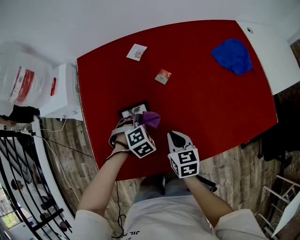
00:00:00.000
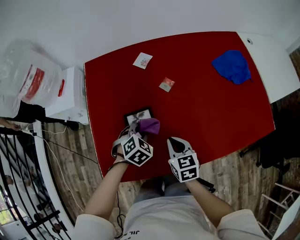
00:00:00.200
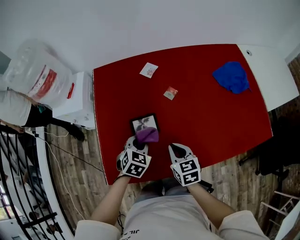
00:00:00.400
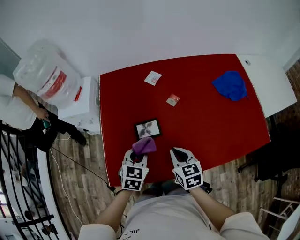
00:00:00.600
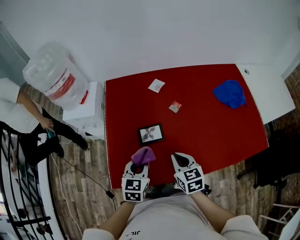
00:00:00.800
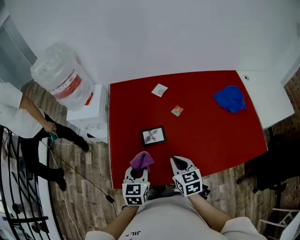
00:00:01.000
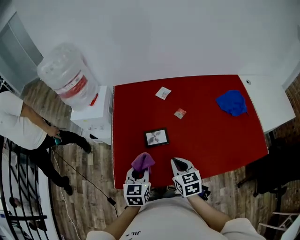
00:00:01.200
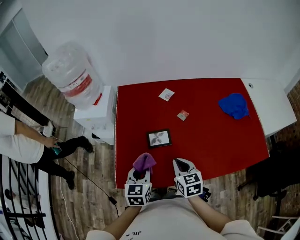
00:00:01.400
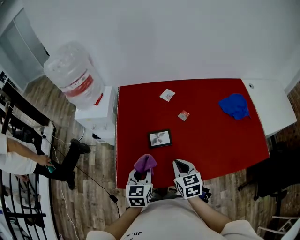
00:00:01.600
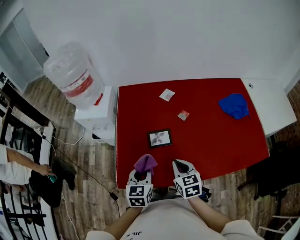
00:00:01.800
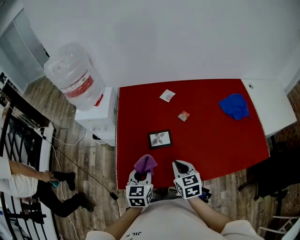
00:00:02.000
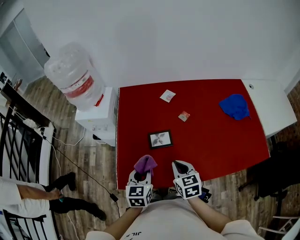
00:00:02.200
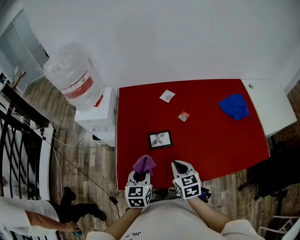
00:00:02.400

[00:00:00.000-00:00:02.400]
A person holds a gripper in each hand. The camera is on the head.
00:00:00.000 to 00:00:01.200: The left gripper goes about 25 cm upward, backward and to the left, and rotates around the line of its fingers by approximately 60 degrees, counterclockwise from behind; the right gripper goes roughly 15 cm upward, to the left and backward.
00:00:01.200 to 00:00:02.400: There are only small adjustments of the grippers.

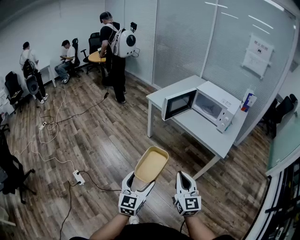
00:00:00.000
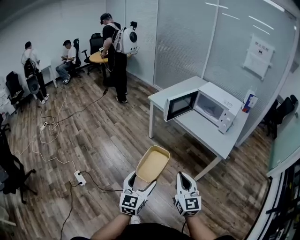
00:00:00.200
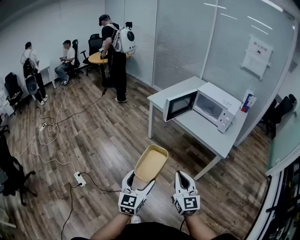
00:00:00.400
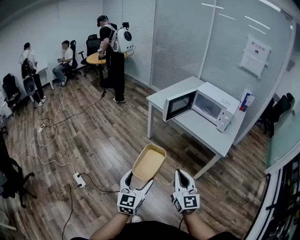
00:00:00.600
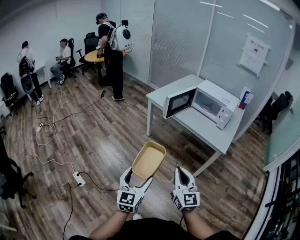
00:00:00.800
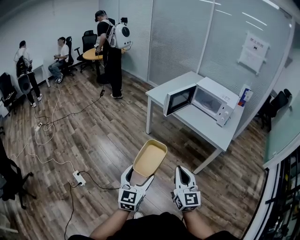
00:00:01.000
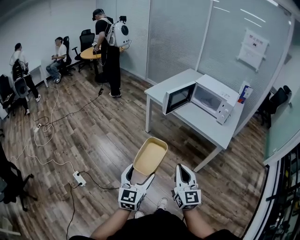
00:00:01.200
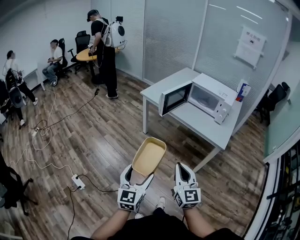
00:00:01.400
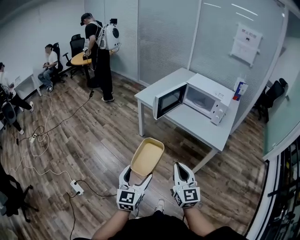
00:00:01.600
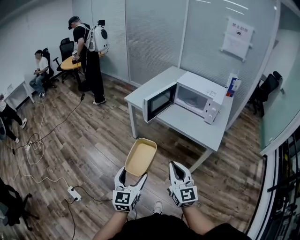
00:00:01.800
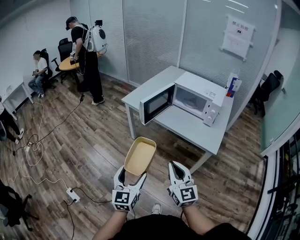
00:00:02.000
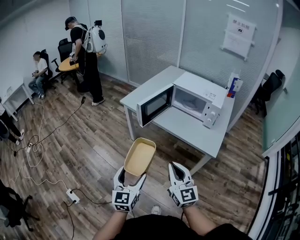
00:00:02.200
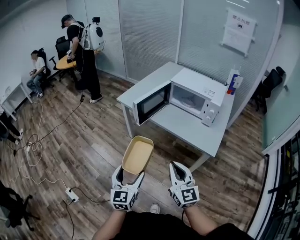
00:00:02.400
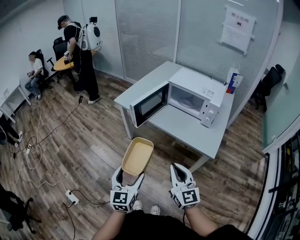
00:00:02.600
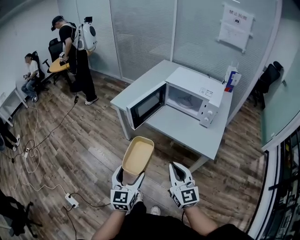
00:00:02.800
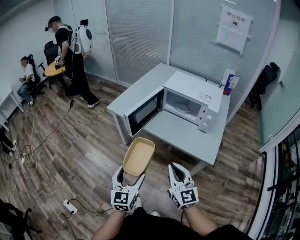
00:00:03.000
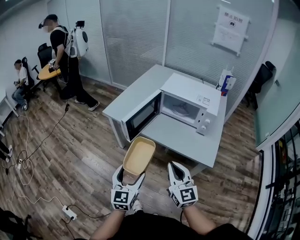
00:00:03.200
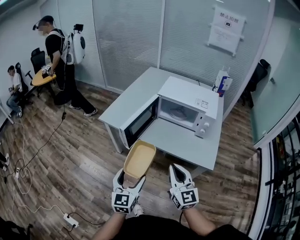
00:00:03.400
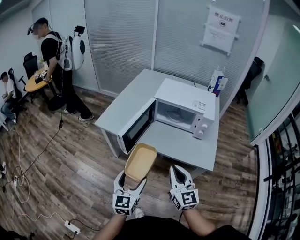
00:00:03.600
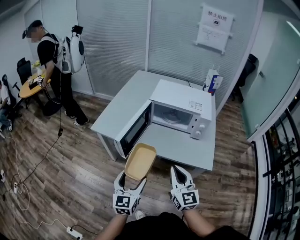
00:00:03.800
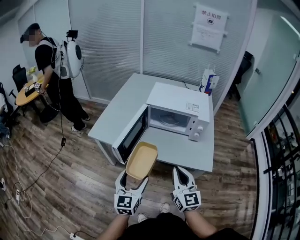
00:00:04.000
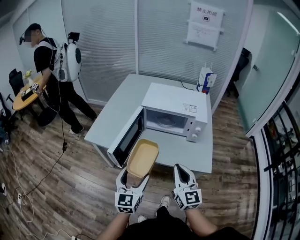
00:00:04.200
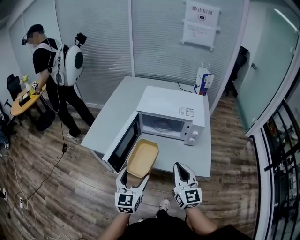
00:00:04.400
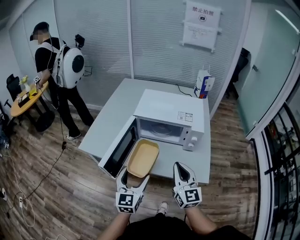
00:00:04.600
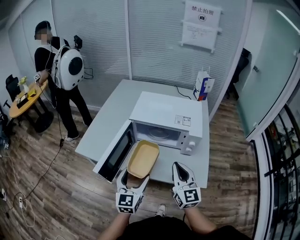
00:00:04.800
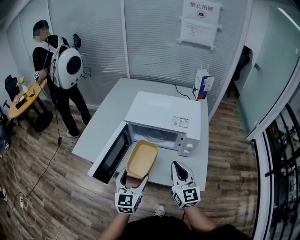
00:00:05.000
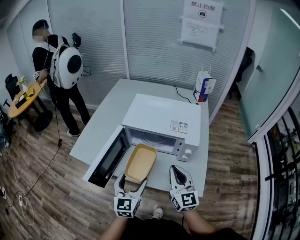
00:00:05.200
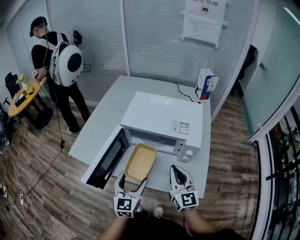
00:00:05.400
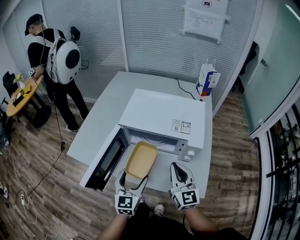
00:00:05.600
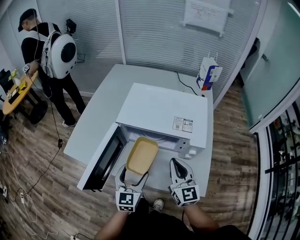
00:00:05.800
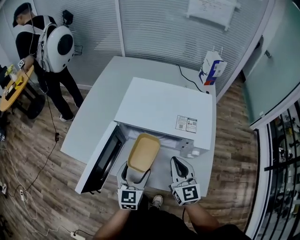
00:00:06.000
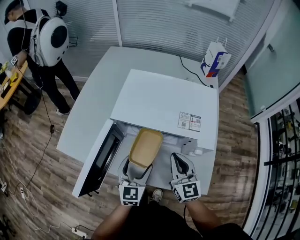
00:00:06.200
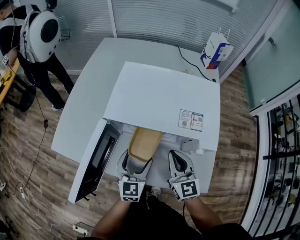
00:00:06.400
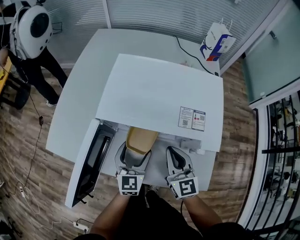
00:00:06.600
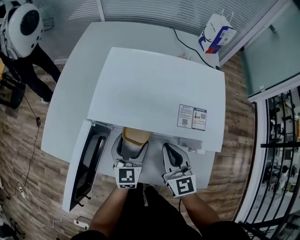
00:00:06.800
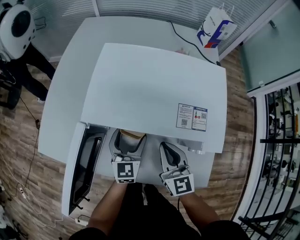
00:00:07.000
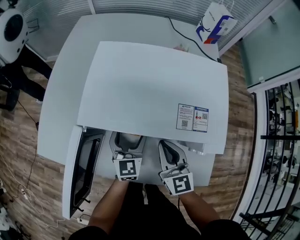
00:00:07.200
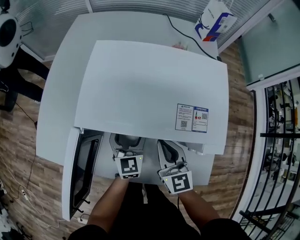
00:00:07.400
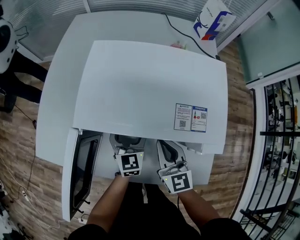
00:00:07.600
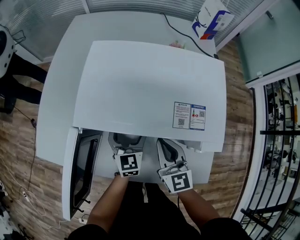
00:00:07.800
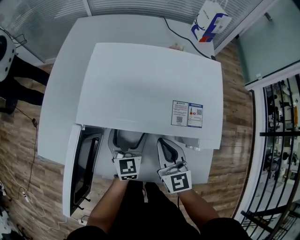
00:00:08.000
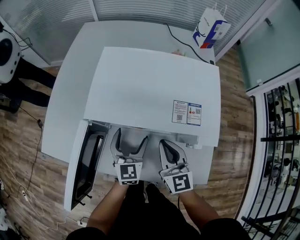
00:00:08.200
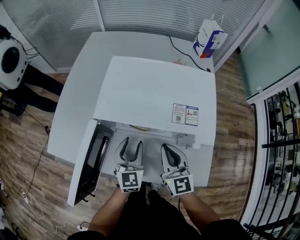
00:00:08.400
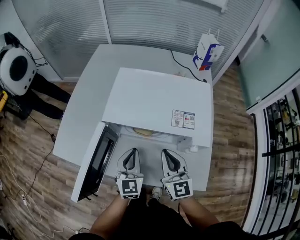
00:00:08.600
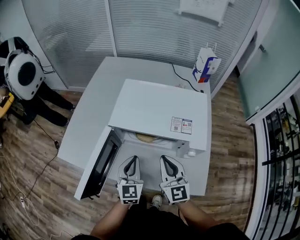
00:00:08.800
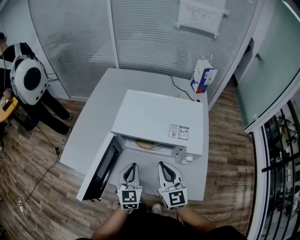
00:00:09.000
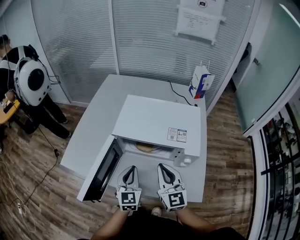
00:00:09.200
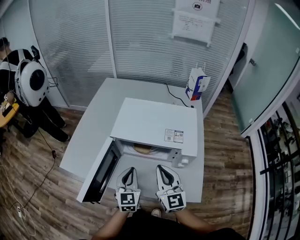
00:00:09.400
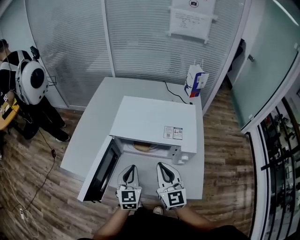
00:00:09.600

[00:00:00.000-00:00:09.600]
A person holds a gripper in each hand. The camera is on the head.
00:00:00.000 to 00:00:01.600: Both grippers travel together forward, about 5 cm.
00:00:01.600 to 00:00:03.200: The right gripper travels forward and to the right by about 25 cm. Meanwhile the left gripper heads forward, covering approximately 25 cm.
00:00:03.200 to 00:00:04.800: The left gripper heads forward, covering some 25 cm. The right gripper travels forward and to the right by roughly 20 cm.
00:00:04.800 to 00:00:06.400: The two grippers go about 20 cm forward and downward.
00:00:06.400 to 00:00:08.000: The left gripper moves forward and downward, roughly 10 cm. Meanwhile the right gripper moves about 5 cm.
00:00:08.000 to 00:00:09.600: The two grippers go some 15 cm upward and backward. The left gripper closes.

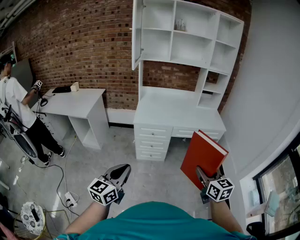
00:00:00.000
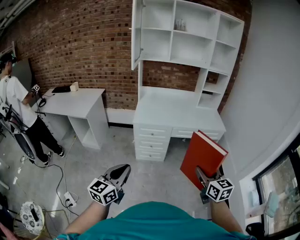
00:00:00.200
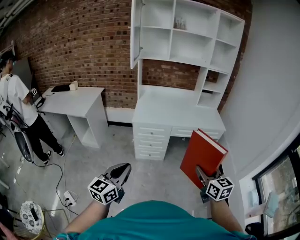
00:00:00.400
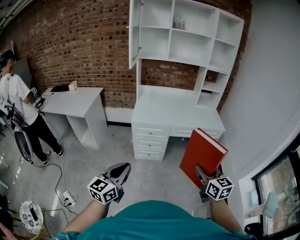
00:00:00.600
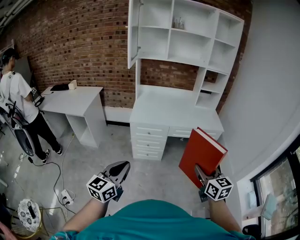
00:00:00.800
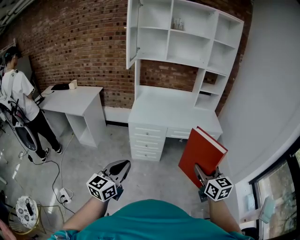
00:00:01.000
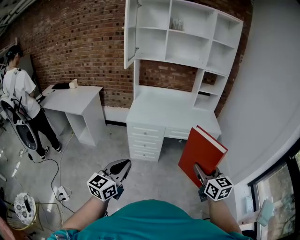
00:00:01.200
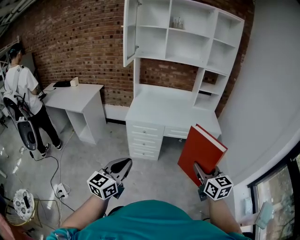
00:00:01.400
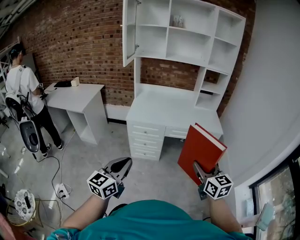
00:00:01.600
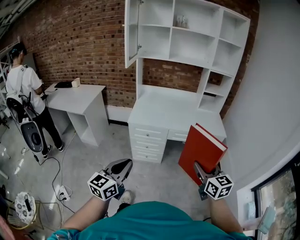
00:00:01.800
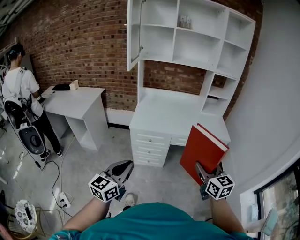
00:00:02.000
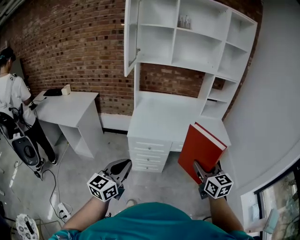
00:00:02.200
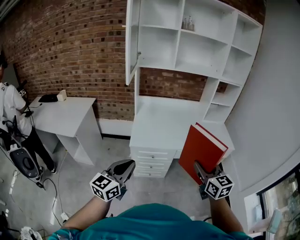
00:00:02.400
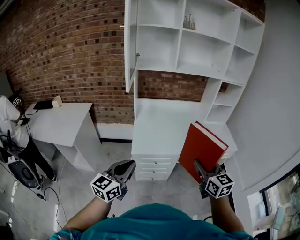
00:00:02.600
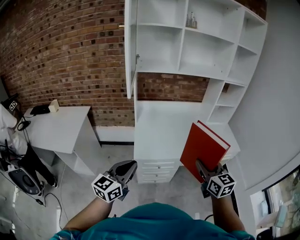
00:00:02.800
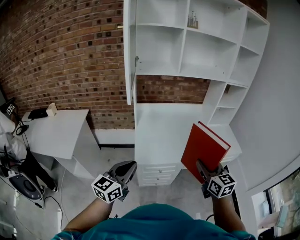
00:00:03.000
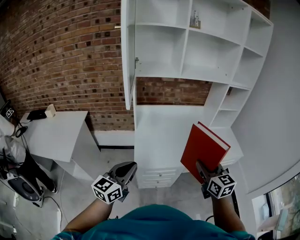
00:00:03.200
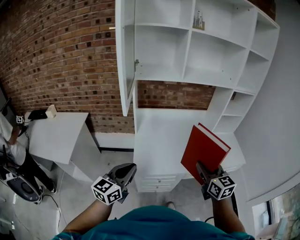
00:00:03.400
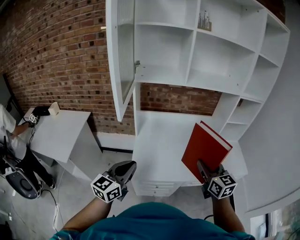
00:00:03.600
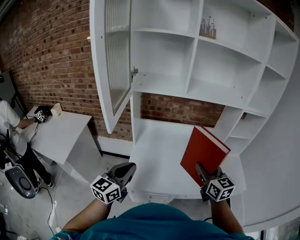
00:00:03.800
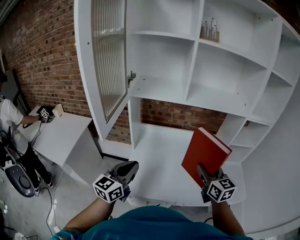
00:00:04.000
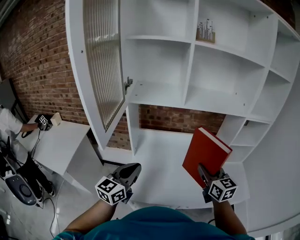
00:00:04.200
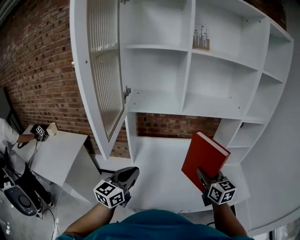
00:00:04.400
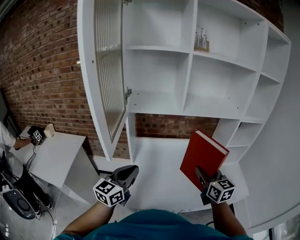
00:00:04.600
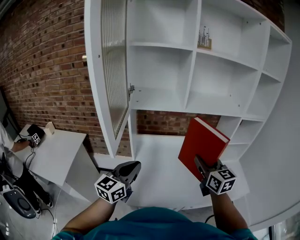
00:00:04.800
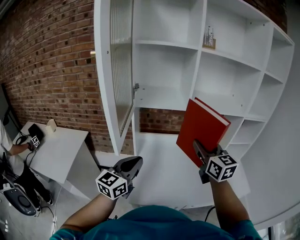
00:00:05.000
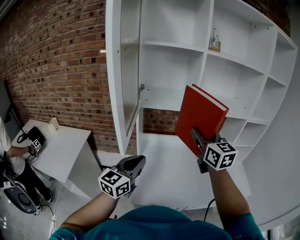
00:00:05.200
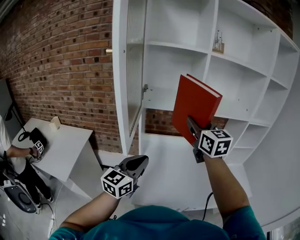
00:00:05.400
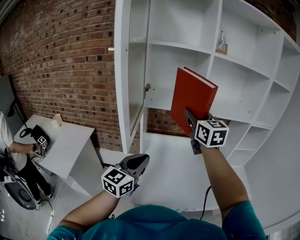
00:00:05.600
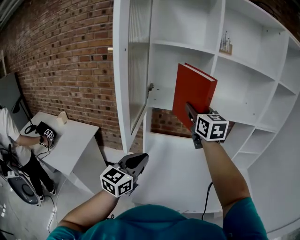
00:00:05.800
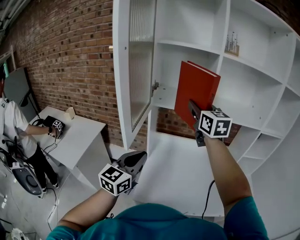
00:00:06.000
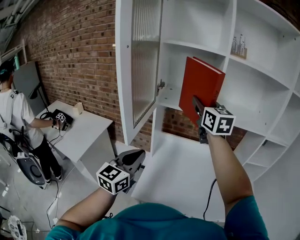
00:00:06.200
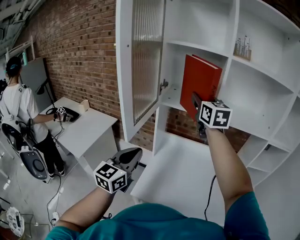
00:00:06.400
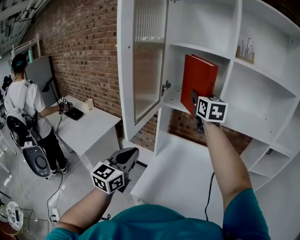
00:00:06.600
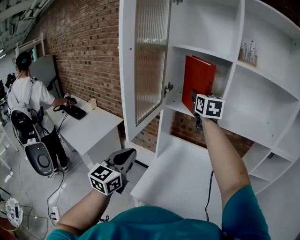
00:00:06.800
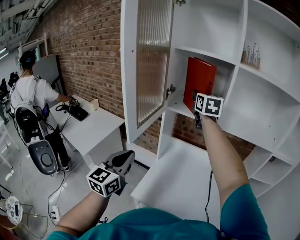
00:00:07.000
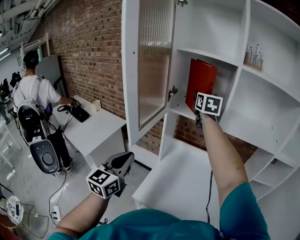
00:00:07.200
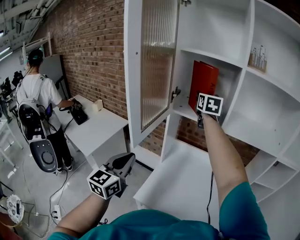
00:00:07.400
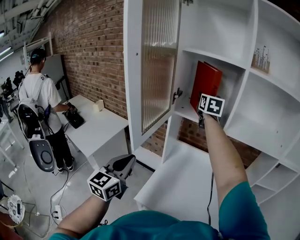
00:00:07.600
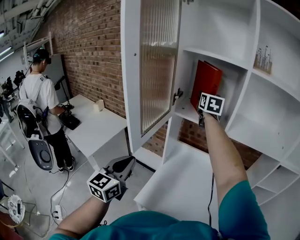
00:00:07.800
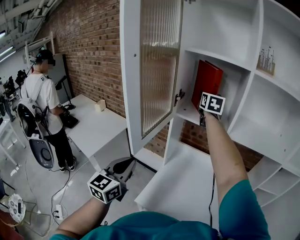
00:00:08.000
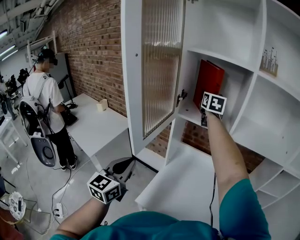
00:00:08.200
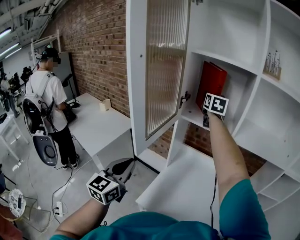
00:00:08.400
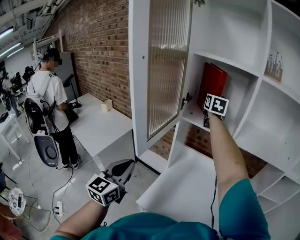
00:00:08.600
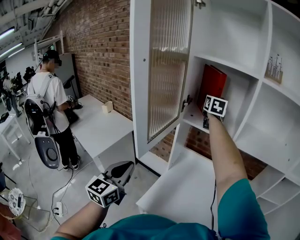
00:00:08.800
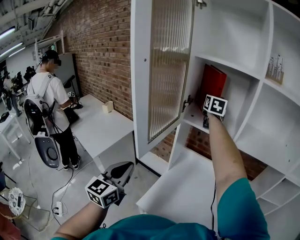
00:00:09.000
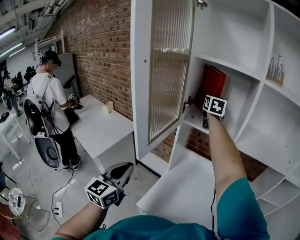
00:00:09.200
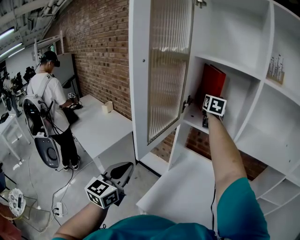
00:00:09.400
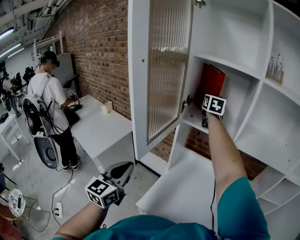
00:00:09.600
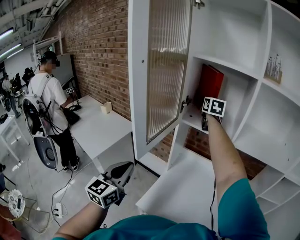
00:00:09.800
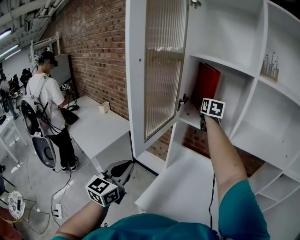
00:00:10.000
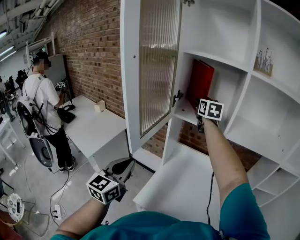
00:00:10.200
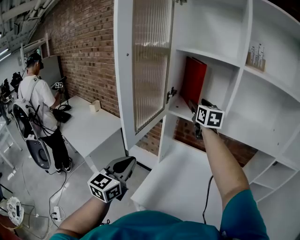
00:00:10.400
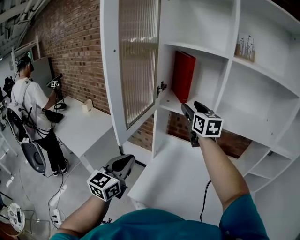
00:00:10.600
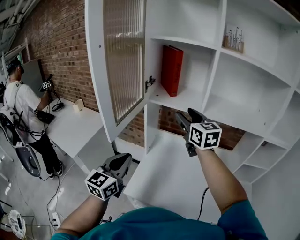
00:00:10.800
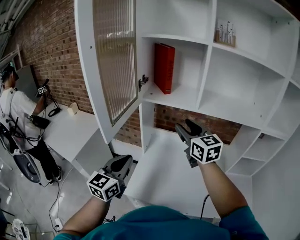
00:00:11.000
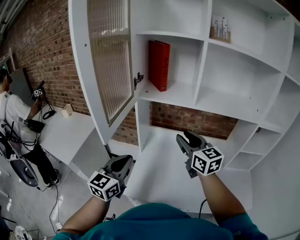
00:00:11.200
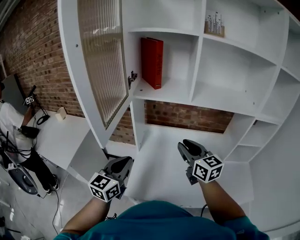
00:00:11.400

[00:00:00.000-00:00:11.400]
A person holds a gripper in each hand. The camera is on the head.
00:00:00.000 to 00:00:01.400: The two grippers go roughly 10 cm to the right.
00:00:01.400 to 00:00:02.800: The grippers both shift forward and to the left by roughly 40 cm.
00:00:02.800 to 00:00:04.200: The grippers both shift forward by about 30 cm.
00:00:04.200 to 00:00:05.600: The right gripper shifts about 30 cm upward, to the left and forward; the left gripper travels upward and to the left by approximately 5 cm.
00:00:05.600 to 00:00:07.200: The left gripper travels to the left and backward by roughly 10 cm, and turns by about 30 degrees, while the right gripper is displaced forward by approximately 15 cm.
00:00:07.200 to 00:00:08.600: The right gripper shifts approximately 10 cm forward.
00:00:08.600 to 00:00:10.000: The right gripper opens up.
00:00:10.000 to 00:00:11.400: The right gripper moves backward and downward, some 40 cm, and closes its fingers. The left gripper goes approximately 10 cm to the right and downward, and swivels approximately 20 degrees.
